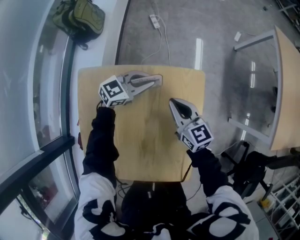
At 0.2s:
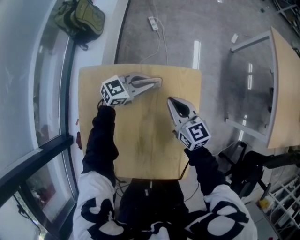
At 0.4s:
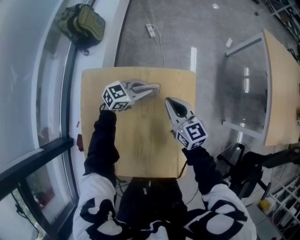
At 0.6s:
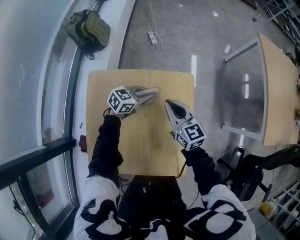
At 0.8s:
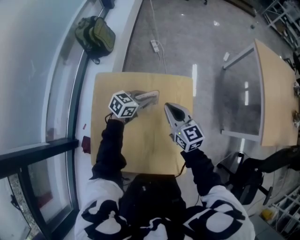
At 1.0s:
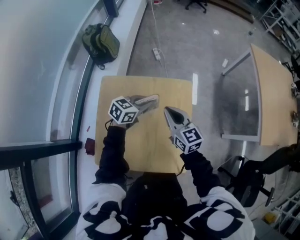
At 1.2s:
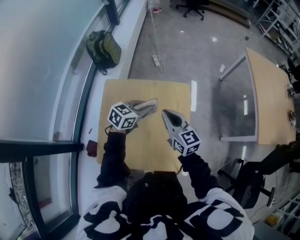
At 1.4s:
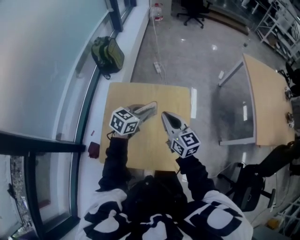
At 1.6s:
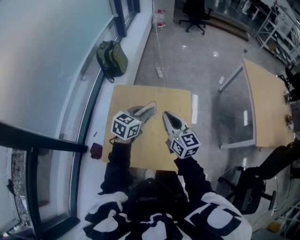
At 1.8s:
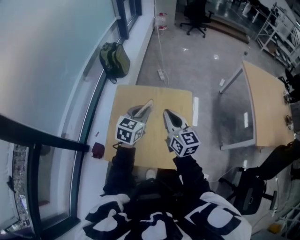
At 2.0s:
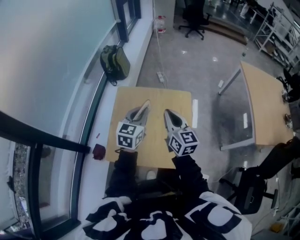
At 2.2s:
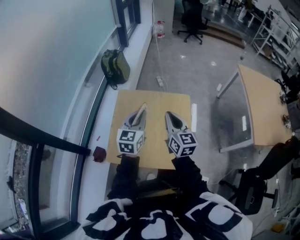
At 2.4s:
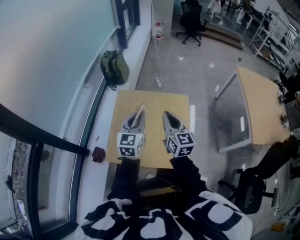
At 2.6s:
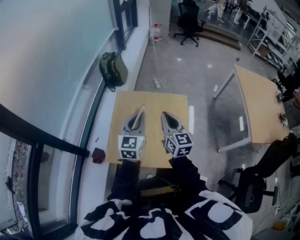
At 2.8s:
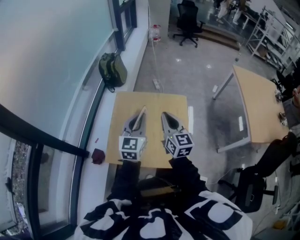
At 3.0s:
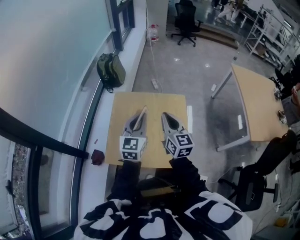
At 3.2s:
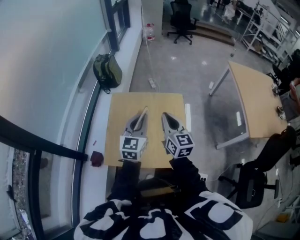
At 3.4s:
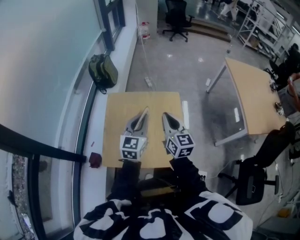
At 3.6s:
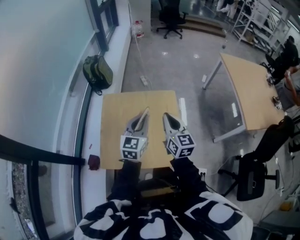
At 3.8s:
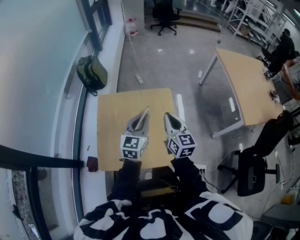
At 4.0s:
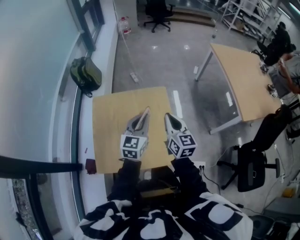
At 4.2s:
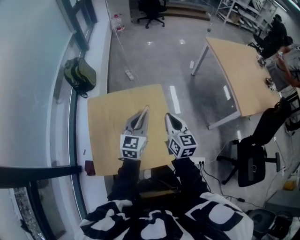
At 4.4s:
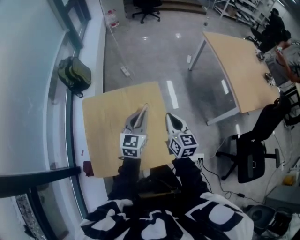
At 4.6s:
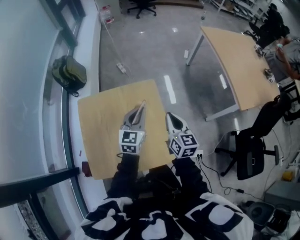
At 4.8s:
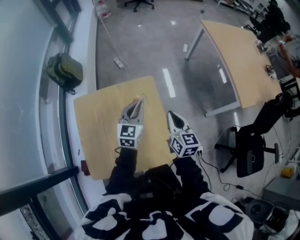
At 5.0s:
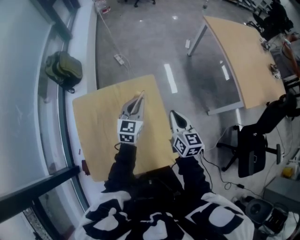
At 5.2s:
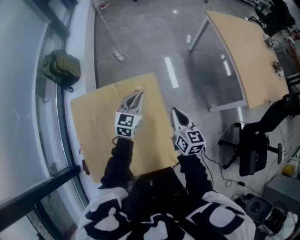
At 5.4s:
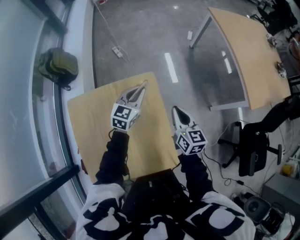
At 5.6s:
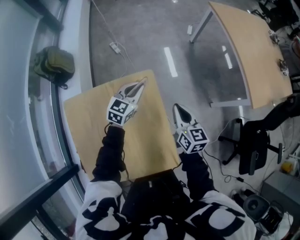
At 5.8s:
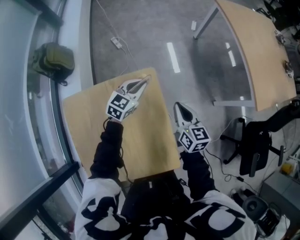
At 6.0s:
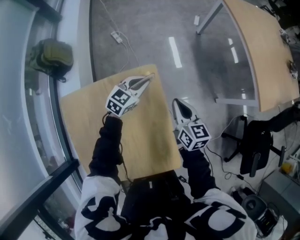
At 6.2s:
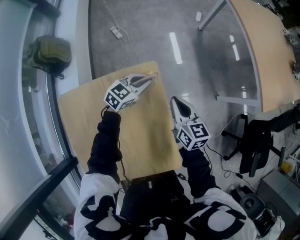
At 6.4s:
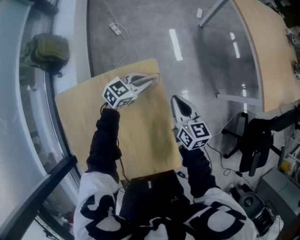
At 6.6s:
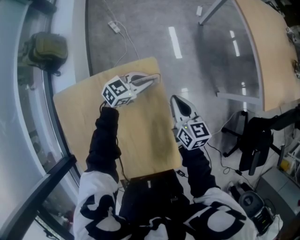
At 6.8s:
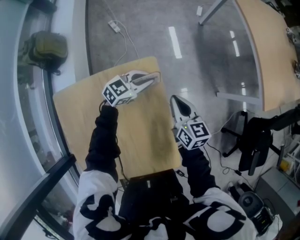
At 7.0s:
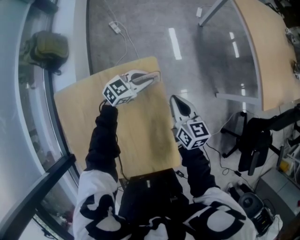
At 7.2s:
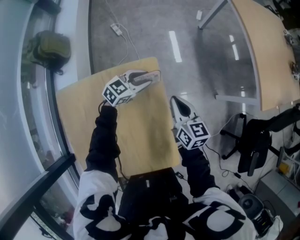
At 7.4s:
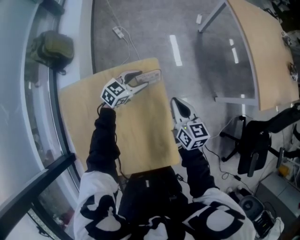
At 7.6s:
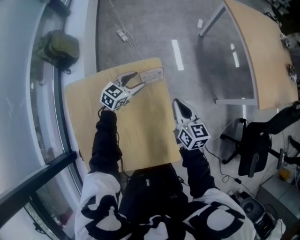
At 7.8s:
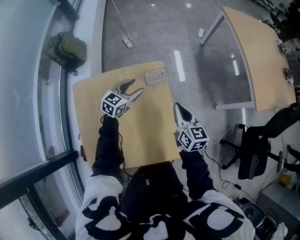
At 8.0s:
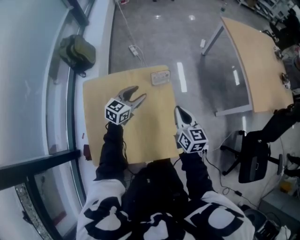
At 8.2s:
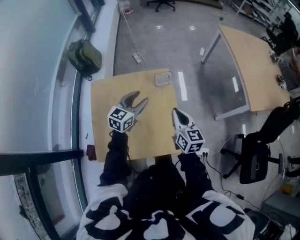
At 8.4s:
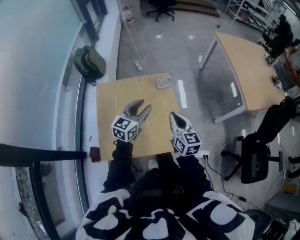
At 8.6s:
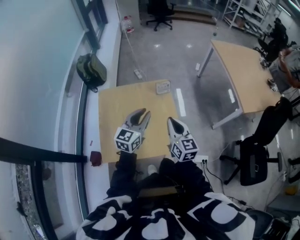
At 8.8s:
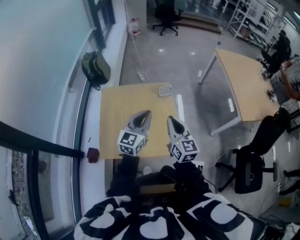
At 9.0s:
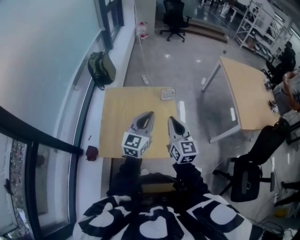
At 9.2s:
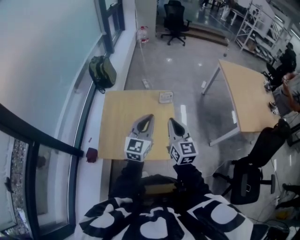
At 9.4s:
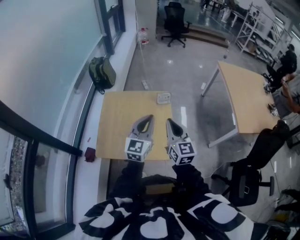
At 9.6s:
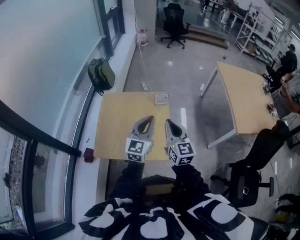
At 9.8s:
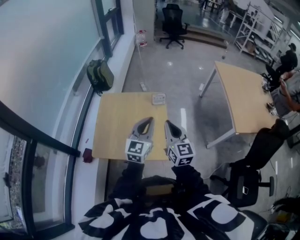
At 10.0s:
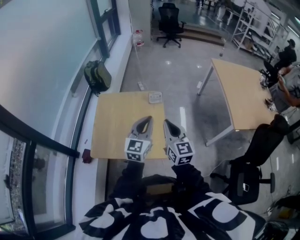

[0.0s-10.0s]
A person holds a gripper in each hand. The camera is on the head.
0.0s to 1.4s: The right gripper shifts some 25 cm upward and backward, while the left gripper shifts approximately 25 cm backward and upward, and rotates approximately 30 degrees.
1.4s to 2.8s: The right gripper moves upward and backward, roughly 10 cm. The left gripper moves upward, backward and to the left, roughly 20 cm, and changes its angle by some 40 degrees.
2.8s to 4.2s: The left gripper is displaced to the right, downward and forward by about 15 cm. The right gripper heads to the right and downward, covering roughly 15 cm.
4.2s to 5.8s: The right gripper shifts some 20 cm forward, downward and to the right, while the left gripper goes some 30 cm forward and downward, and swivels some 30 degrees.
5.8s to 7.2s: The left gripper shifts some 5 cm downward.
7.2s to 8.6s: Both grippers move backward and upward, approximately 40 cm. The left gripper turns by approximately 40 degrees.
8.6s to 10.0s: The left gripper shifts some 10 cm to the right and upward. Meanwhile the right gripper heads upward and to the right, covering approximately 10 cm.

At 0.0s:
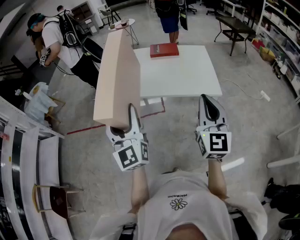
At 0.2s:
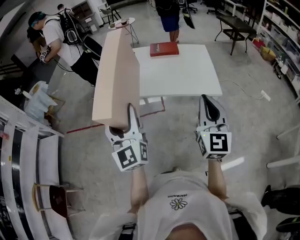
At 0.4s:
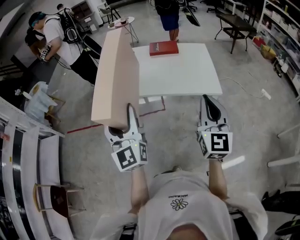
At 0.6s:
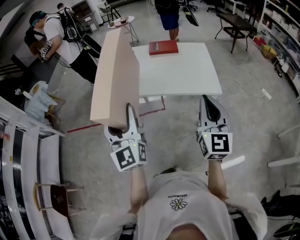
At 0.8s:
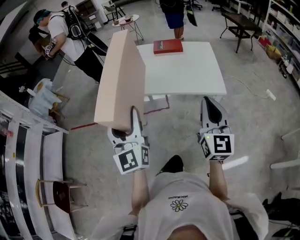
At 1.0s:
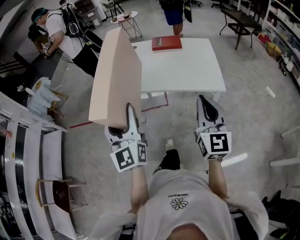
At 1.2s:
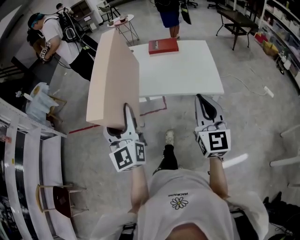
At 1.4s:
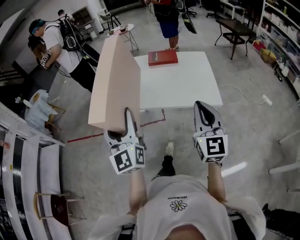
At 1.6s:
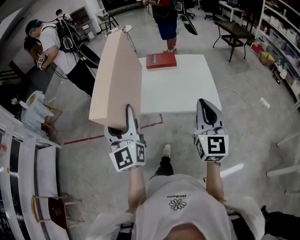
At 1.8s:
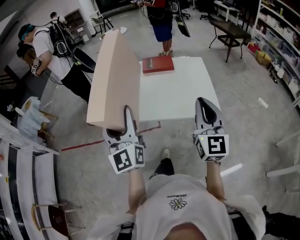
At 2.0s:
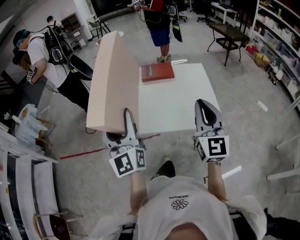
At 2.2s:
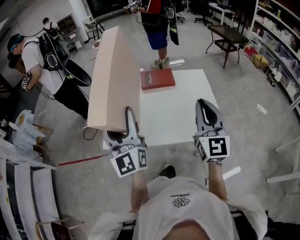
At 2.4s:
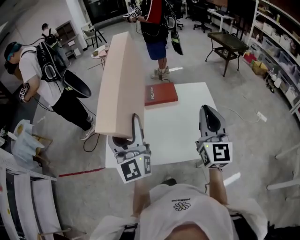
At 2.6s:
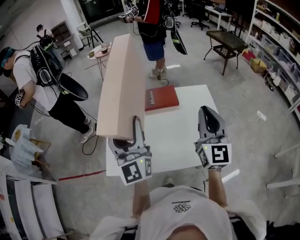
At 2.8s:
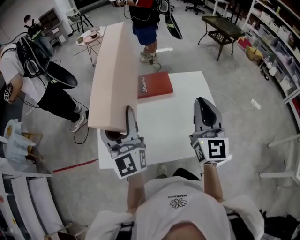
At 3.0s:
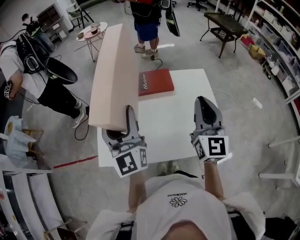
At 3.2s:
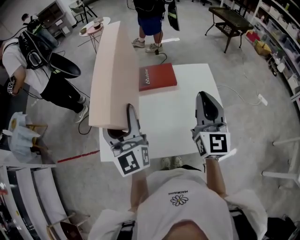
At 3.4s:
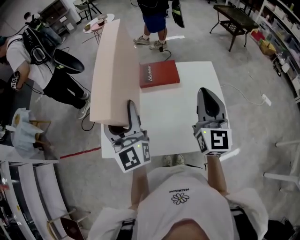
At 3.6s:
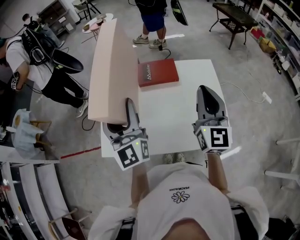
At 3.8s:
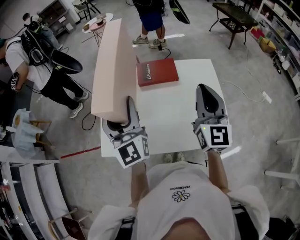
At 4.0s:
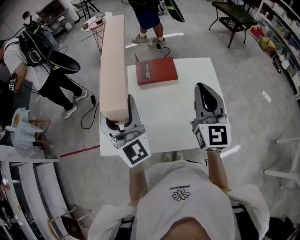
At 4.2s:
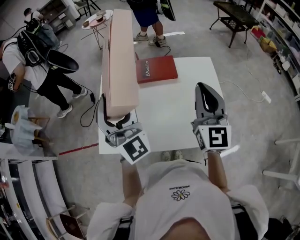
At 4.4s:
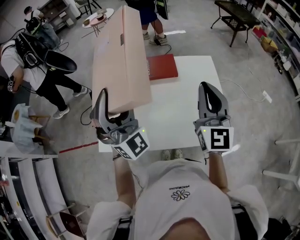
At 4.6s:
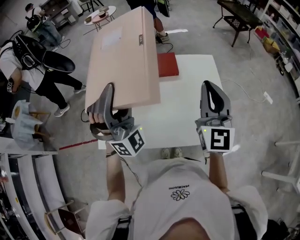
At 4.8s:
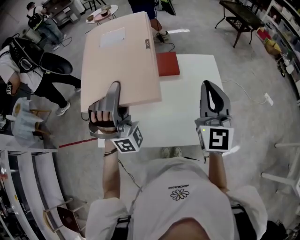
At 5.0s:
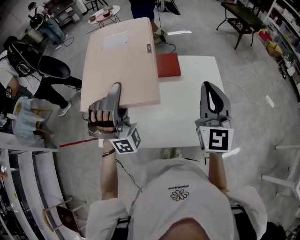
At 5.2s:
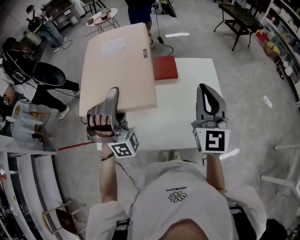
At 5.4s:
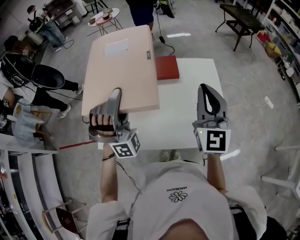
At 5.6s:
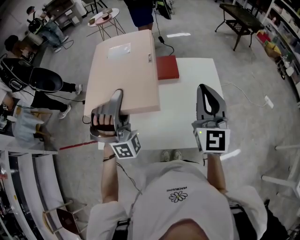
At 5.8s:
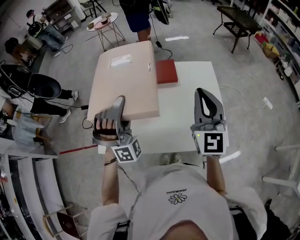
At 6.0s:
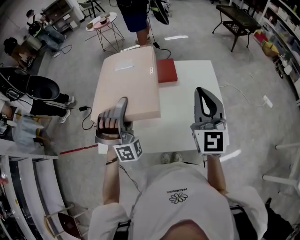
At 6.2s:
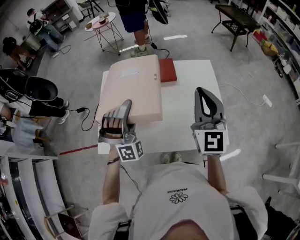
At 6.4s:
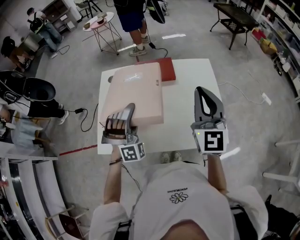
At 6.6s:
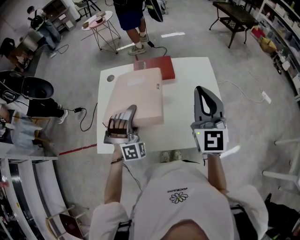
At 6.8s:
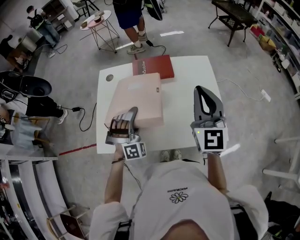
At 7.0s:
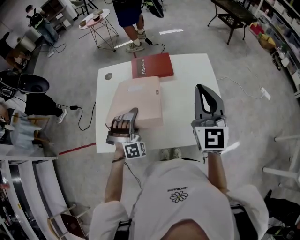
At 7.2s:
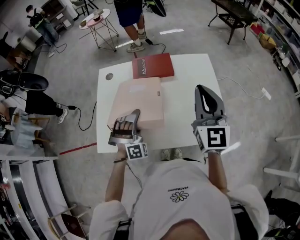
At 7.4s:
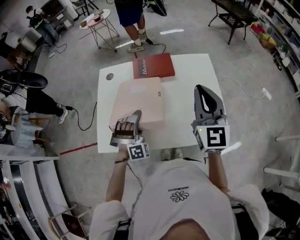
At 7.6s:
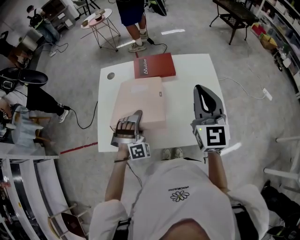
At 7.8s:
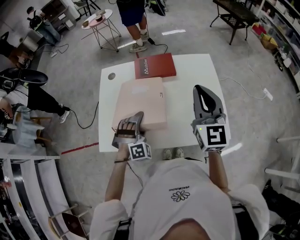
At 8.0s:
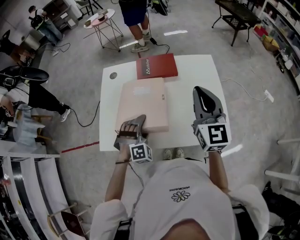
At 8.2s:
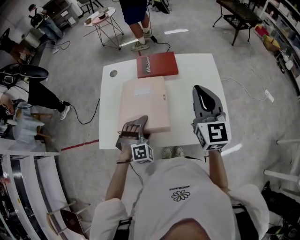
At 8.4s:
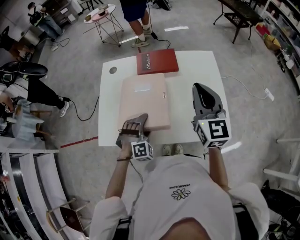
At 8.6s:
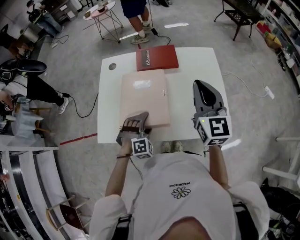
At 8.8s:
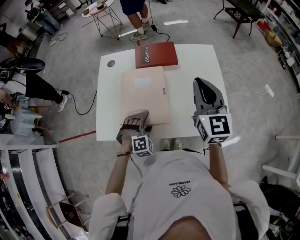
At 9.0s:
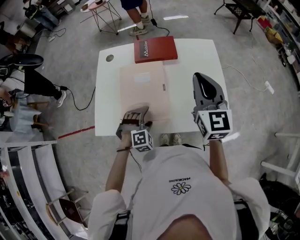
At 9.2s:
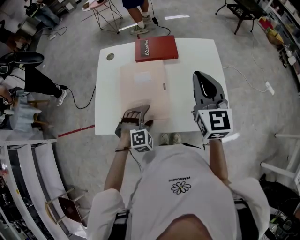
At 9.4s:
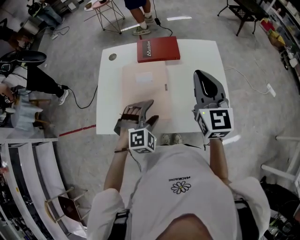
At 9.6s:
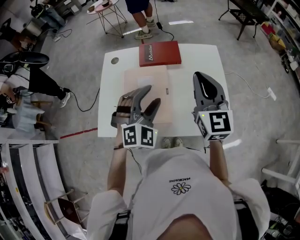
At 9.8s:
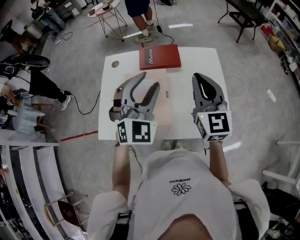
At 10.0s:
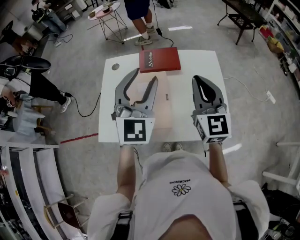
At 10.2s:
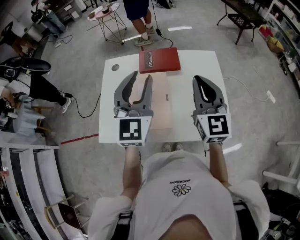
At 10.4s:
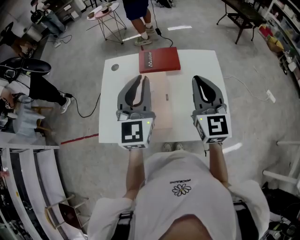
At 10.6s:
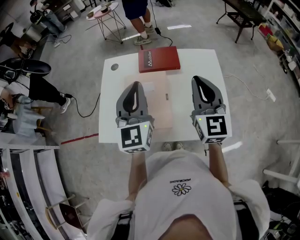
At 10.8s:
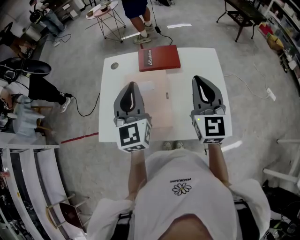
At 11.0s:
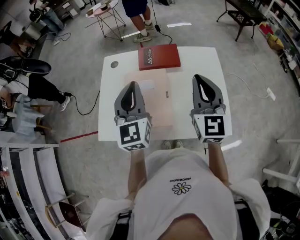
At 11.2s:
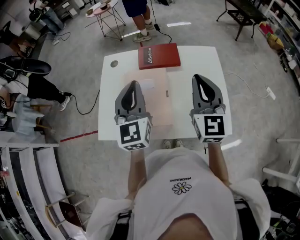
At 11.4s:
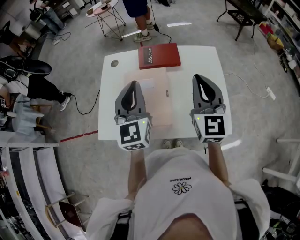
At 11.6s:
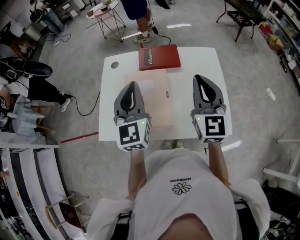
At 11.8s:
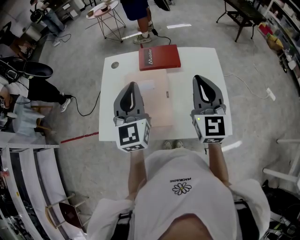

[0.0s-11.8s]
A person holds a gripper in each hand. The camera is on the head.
0.0s to 1.4s: The two grippers go about 5 cm forward.
1.4s to 3.0s: The two grippers go approximately 40 cm forward.
3.0s to 4.4s: The left gripper twists some 60 degrees clockwise, seen from behind.
4.4s to 6.0s: The left gripper heads downward, covering roughly 10 cm, and swivels about 40 degrees.
6.0s to 7.4s: The left gripper goes approximately 15 cm downward, and rotates roughly 20 degrees.
7.4s to 8.8s: The left gripper heads downward and backward, covering roughly 10 cm, and turns by about 30 degrees.
8.8s to 10.4s: The left gripper goes some 35 cm upward, tilts its fingers roughly 50 degrees upward, and closes up.
10.4s to 11.8s: The grippers move only a little.

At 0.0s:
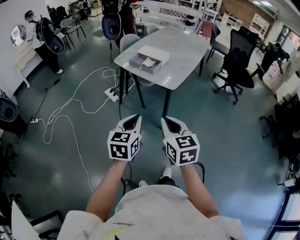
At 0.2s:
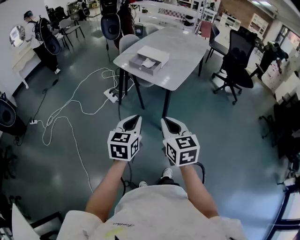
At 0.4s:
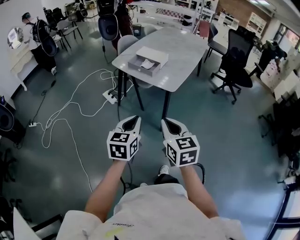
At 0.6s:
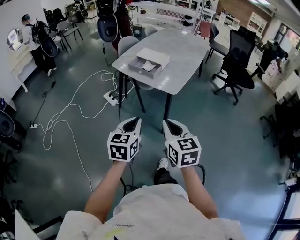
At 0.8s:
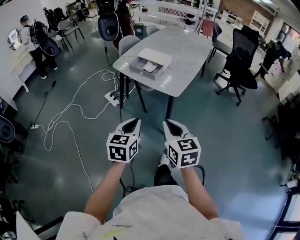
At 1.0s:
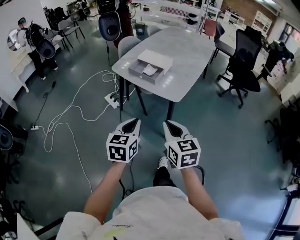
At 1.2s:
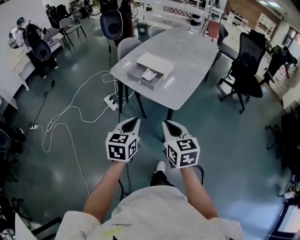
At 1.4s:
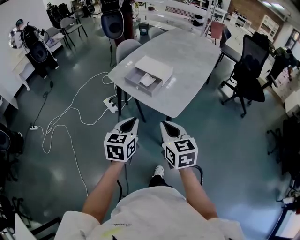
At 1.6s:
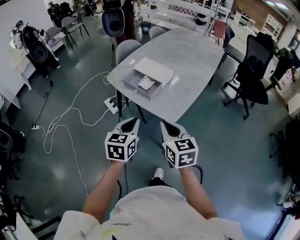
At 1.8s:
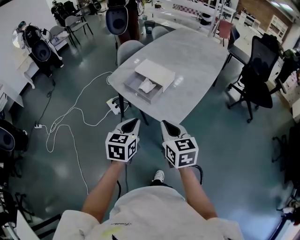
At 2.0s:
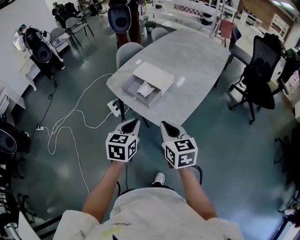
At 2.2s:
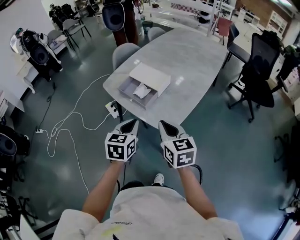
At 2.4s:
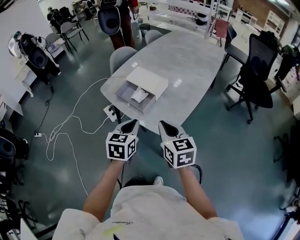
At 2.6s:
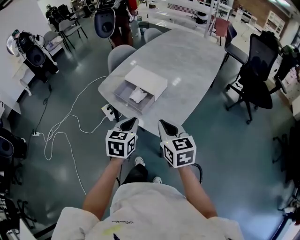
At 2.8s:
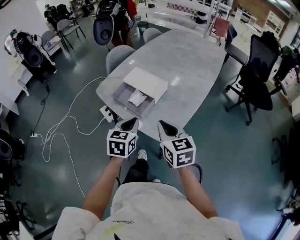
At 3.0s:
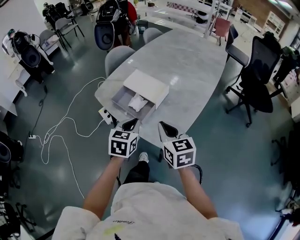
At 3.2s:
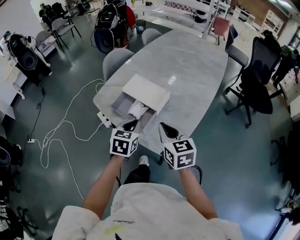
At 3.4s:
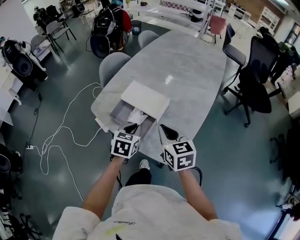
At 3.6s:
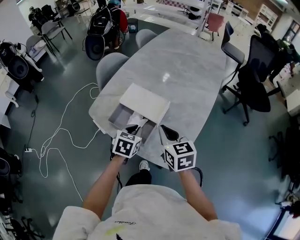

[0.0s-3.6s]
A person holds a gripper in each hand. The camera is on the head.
0.0s to 1.8s: The two grippers go about 30 cm forward.
1.8s to 3.6s: The left gripper shifts about 30 cm forward and downward, and changes its angle by roughly 20 degrees. Meanwhile the right gripper travels forward by roughly 25 cm.
